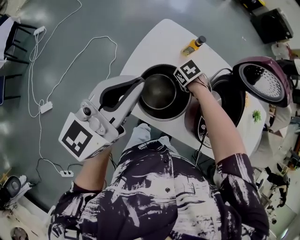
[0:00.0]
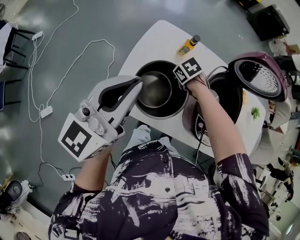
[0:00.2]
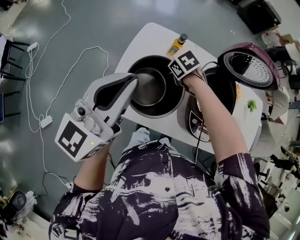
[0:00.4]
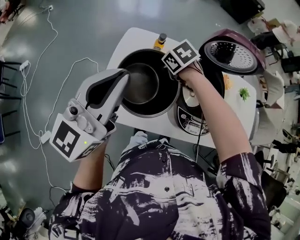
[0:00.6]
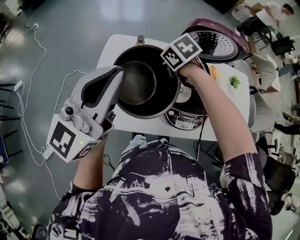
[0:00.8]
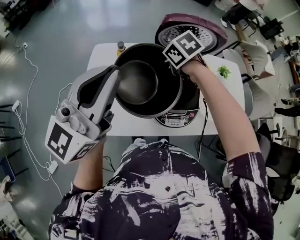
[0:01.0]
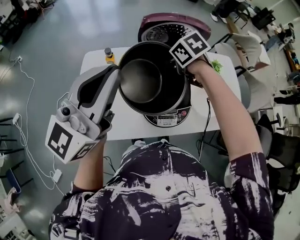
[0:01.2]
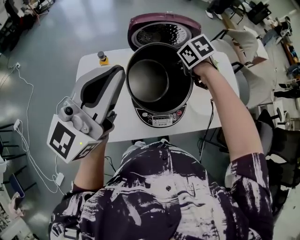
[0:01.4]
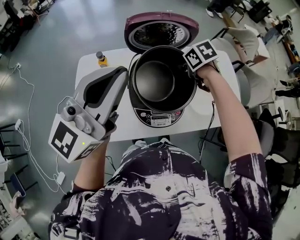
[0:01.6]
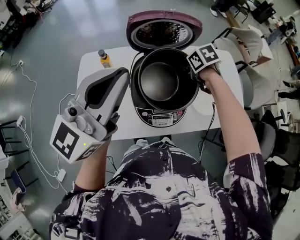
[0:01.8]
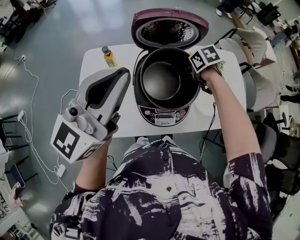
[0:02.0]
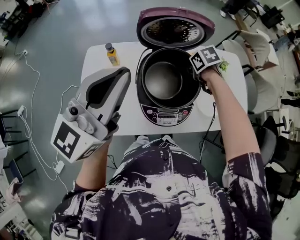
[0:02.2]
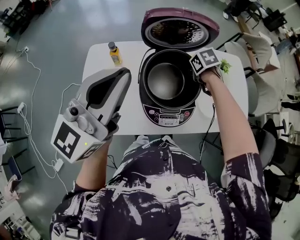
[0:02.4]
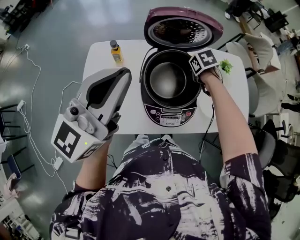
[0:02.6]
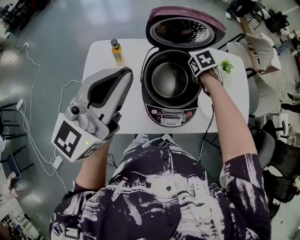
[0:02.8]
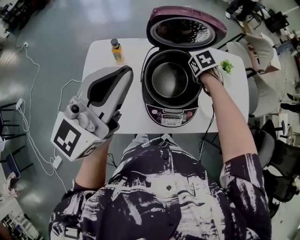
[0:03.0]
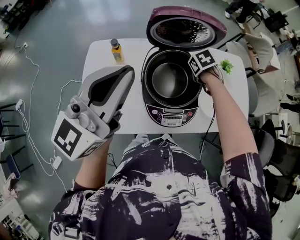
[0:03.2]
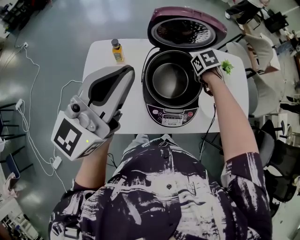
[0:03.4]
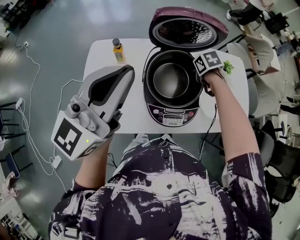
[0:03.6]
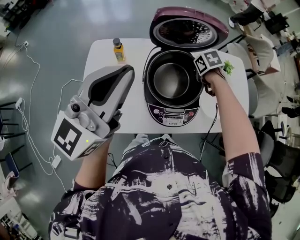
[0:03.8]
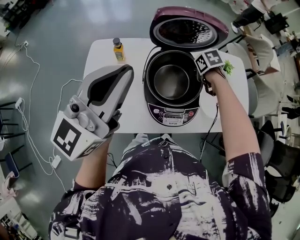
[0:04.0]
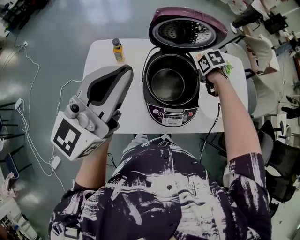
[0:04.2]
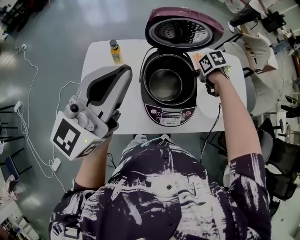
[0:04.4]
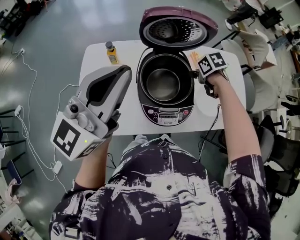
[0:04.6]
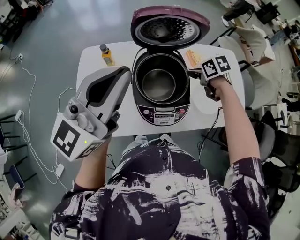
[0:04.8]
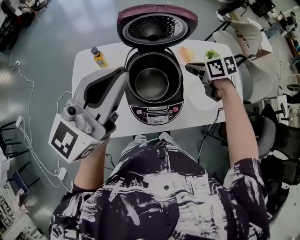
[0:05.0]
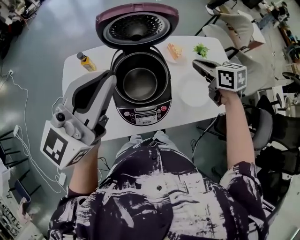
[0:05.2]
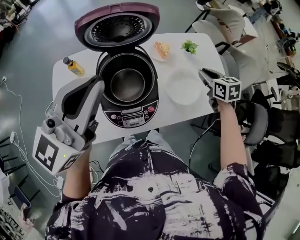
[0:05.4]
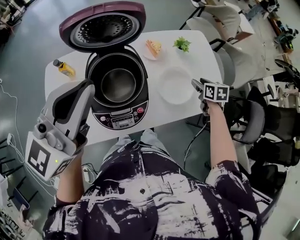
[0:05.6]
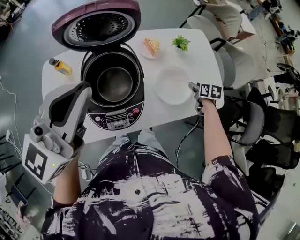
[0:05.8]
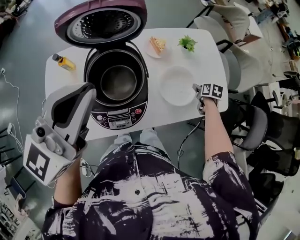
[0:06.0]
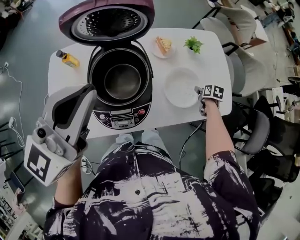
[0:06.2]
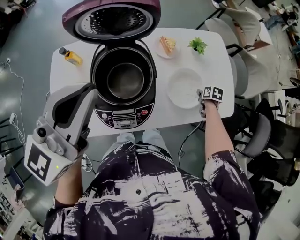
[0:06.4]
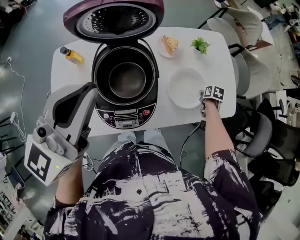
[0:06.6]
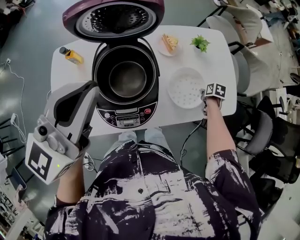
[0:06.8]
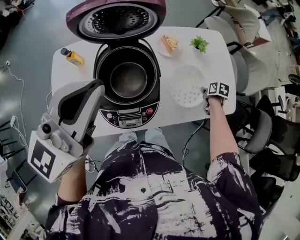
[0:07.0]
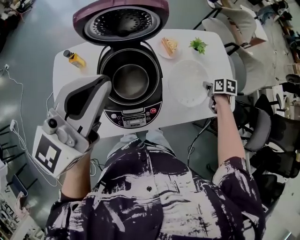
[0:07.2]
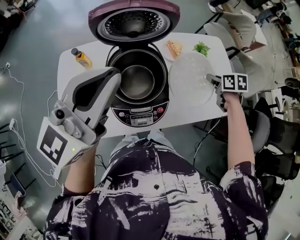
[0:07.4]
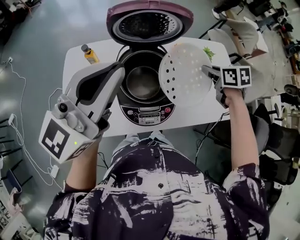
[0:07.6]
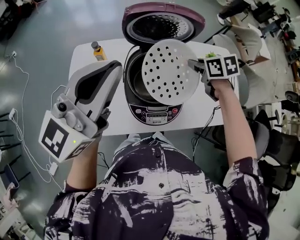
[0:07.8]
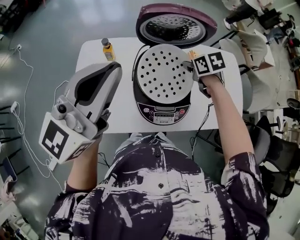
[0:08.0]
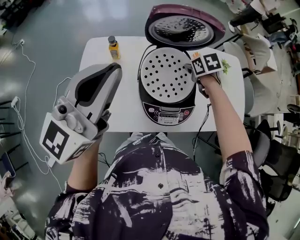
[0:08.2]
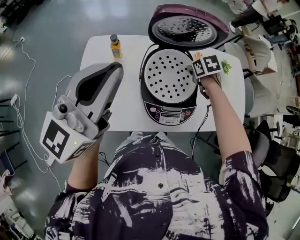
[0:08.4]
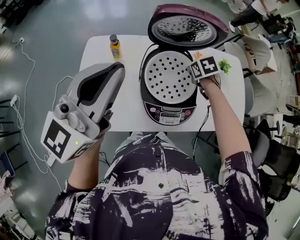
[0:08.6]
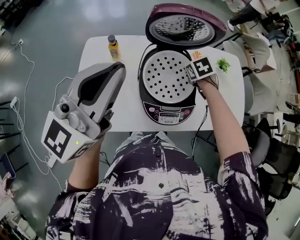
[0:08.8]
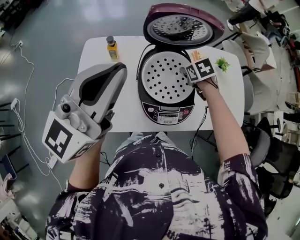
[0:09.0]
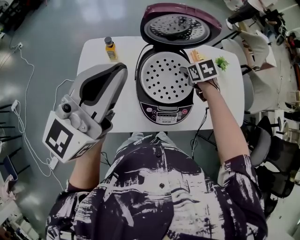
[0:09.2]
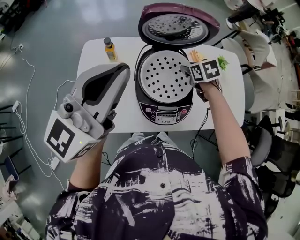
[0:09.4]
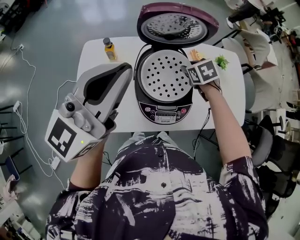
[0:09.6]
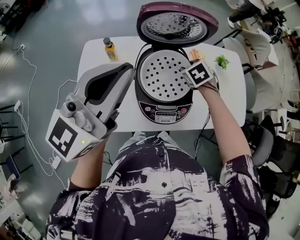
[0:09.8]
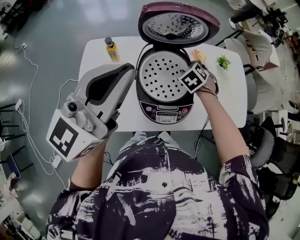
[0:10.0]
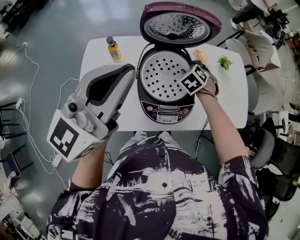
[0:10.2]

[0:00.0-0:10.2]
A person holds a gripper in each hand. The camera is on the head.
0:00.0 to 0:01.4: The right gripper shifts by about 40 cm, and rotates some 40 degrees; the left gripper changes place by about 30 cm, and changes its angle by approximately 30 degrees.
0:01.4 to 0:03.0: The right gripper goes about 10 cm downward.
0:03.0 to 0:04.4: The grippers move only a little.
0:04.4 to 0:05.8: The left gripper moves approximately 15 cm. The right gripper shifts by about 35 cm, and changes its angle by approximately 40 degrees.
0:05.8 to 0:07.2: The right gripper travels downward and back again, about 10 cm each way.
0:07.2 to 0:08.8: The right gripper goes some 30 cm to the left, and rolls counterclockwise, seen from behind, by some 40 degrees, while the left gripper goes some 15 cm to the left.
0:08.8 to 0:10.2: The right gripper changes its angle by some 30 degrees.

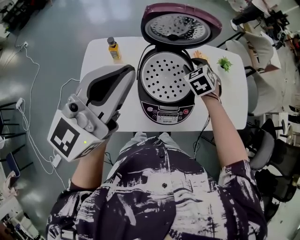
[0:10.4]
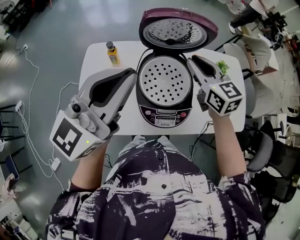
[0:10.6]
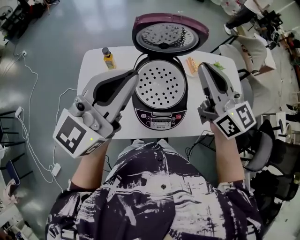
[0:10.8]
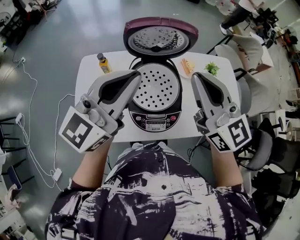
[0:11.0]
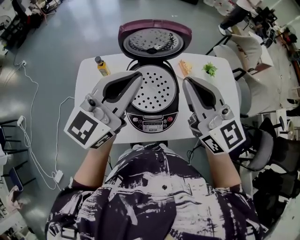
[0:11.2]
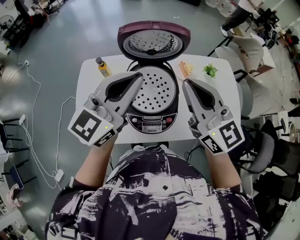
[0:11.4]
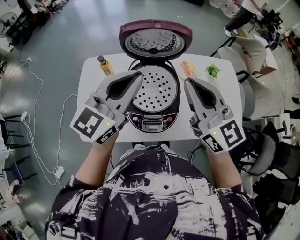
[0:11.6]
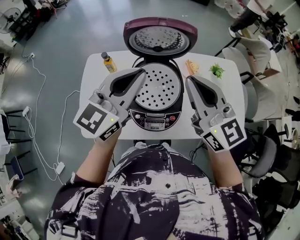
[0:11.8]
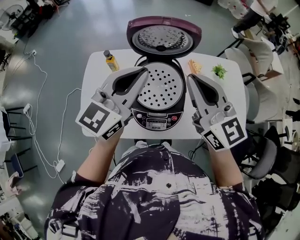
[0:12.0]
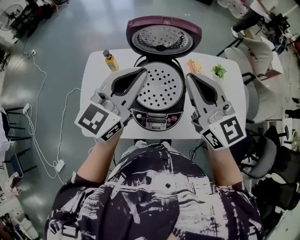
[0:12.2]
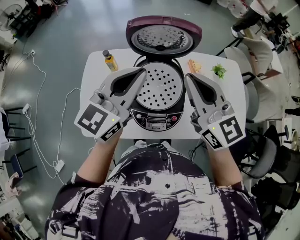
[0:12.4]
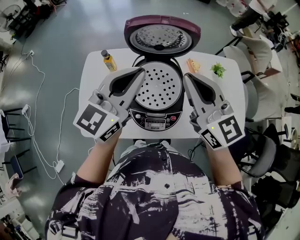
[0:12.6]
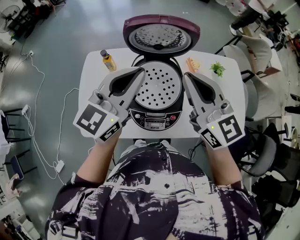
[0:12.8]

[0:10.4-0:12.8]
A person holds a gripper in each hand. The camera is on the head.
0:10.4 to 0:11.6: The left gripper is displaced to the right by approximately 10 cm. The right gripper goes about 30 cm upward and backward, and points its fingers some 50 degrees further upward.
0:11.6 to 0:12.8: The grippers stay close to where they were, moving slightly.

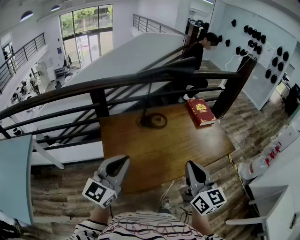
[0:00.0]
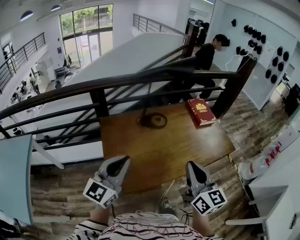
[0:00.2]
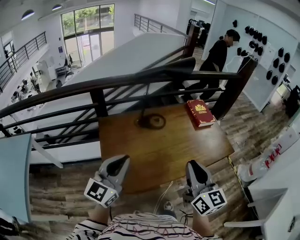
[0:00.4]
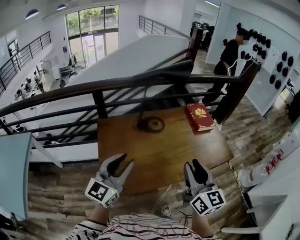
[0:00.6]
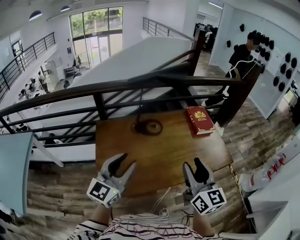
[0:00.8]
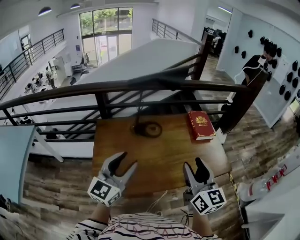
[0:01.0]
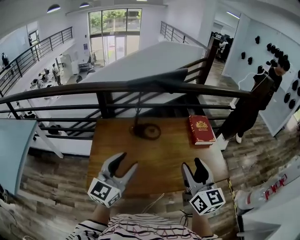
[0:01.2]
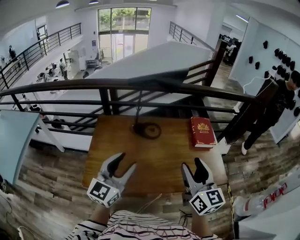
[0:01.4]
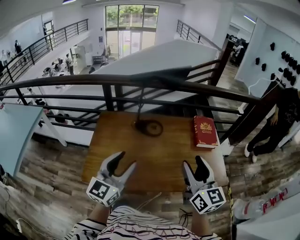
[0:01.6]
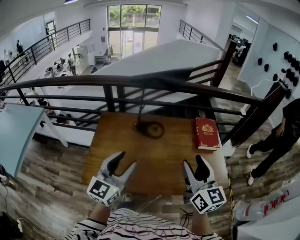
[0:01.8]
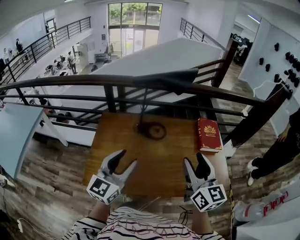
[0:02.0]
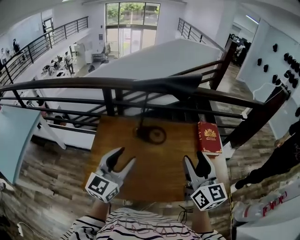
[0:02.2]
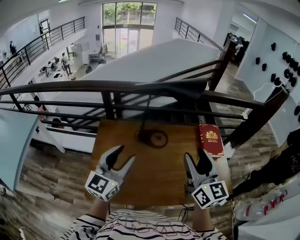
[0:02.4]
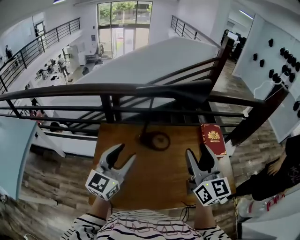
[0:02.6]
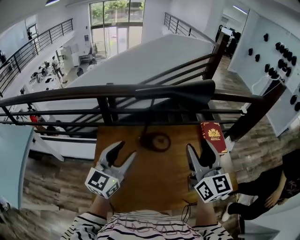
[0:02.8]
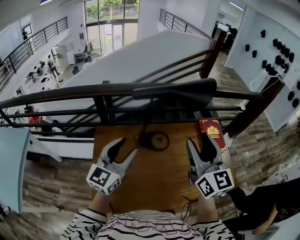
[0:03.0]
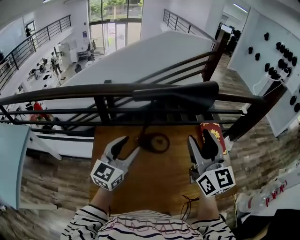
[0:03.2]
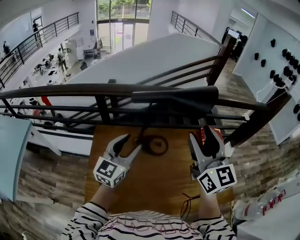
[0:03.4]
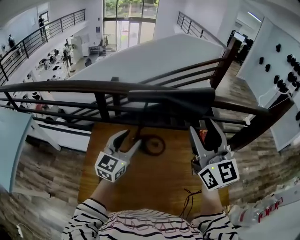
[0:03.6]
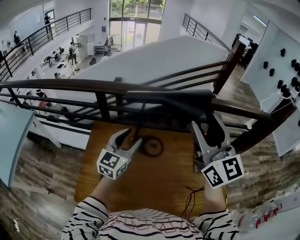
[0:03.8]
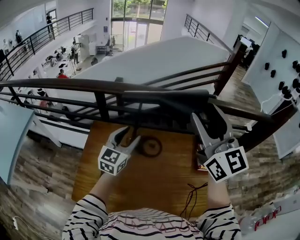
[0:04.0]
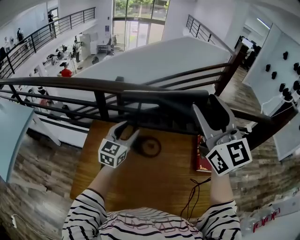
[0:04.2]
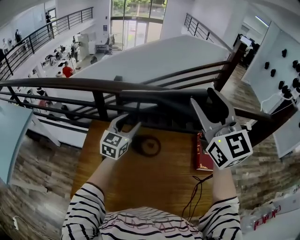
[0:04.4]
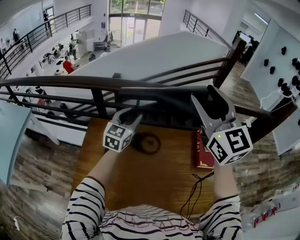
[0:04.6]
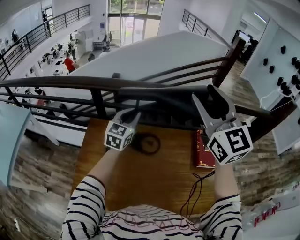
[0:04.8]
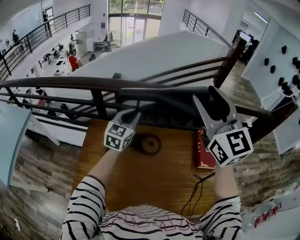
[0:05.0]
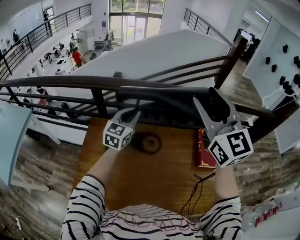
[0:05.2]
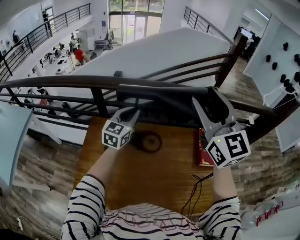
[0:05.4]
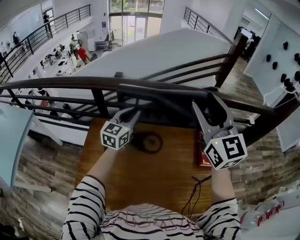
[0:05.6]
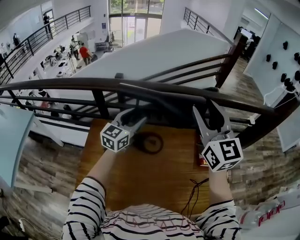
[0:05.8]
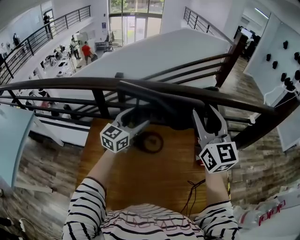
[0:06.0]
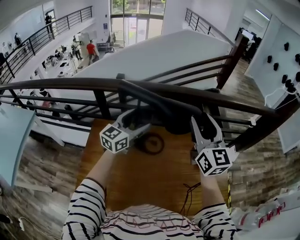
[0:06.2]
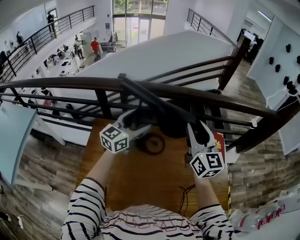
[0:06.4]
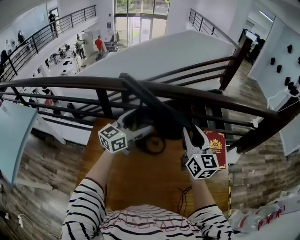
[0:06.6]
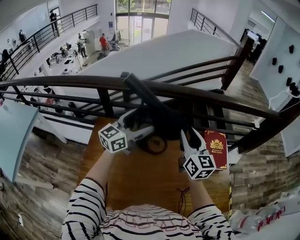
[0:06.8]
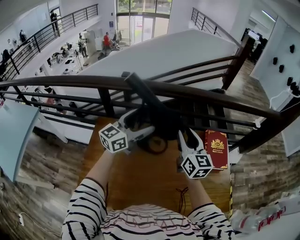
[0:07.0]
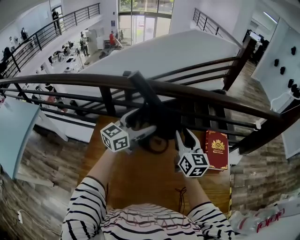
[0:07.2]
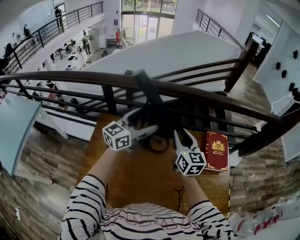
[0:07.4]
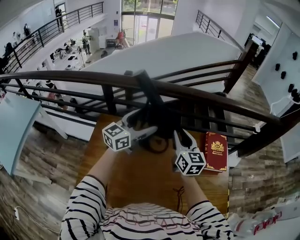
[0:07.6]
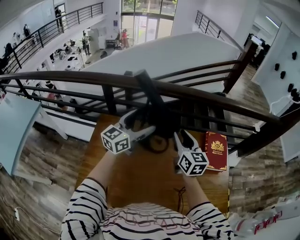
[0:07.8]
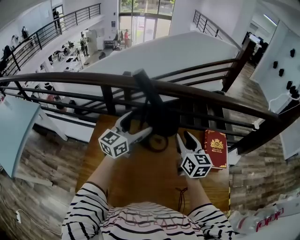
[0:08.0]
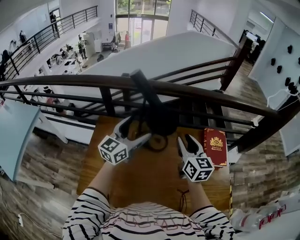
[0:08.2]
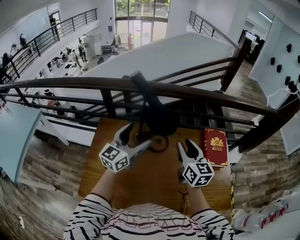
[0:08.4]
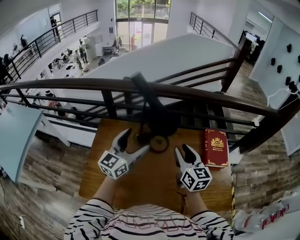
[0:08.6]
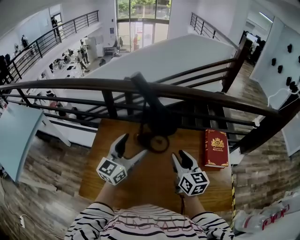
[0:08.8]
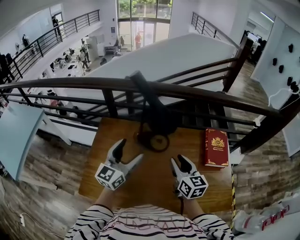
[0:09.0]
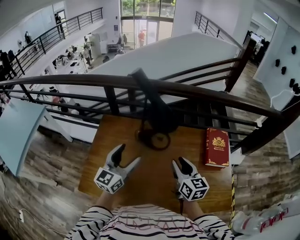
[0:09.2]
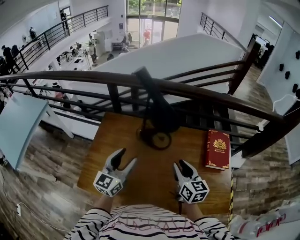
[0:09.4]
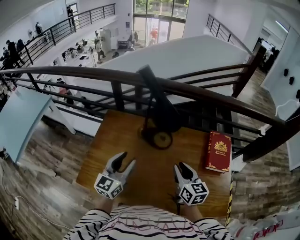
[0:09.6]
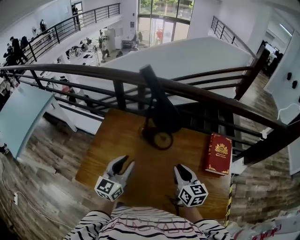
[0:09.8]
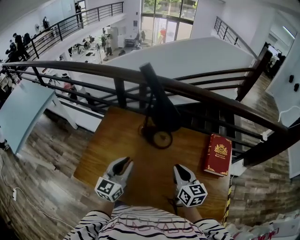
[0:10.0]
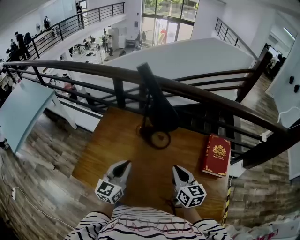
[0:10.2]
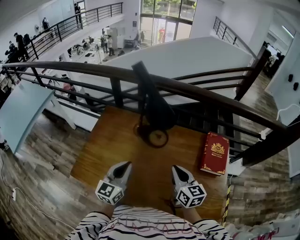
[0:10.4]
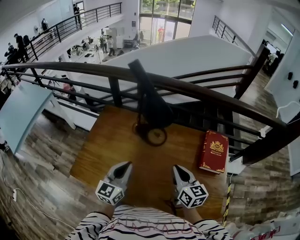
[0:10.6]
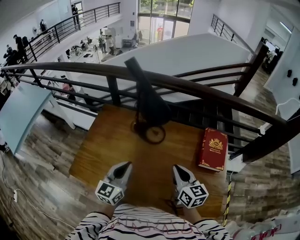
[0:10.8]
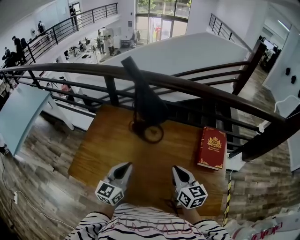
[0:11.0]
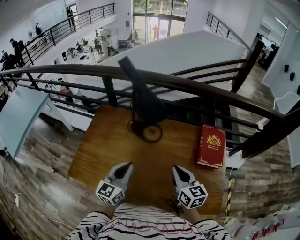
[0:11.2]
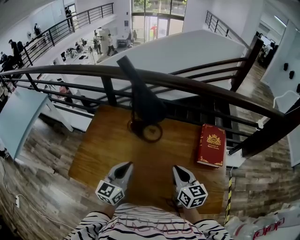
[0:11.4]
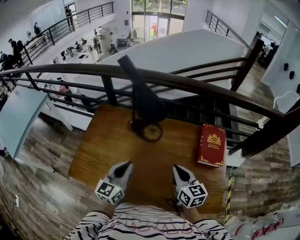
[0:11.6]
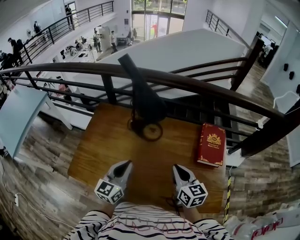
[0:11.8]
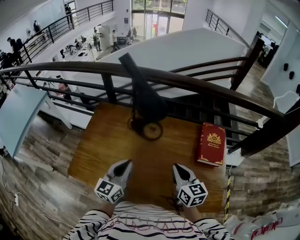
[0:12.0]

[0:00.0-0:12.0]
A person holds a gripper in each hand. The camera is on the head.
0:00.0 to 0:01.6: The right gripper goes roughly 30 cm to the right and forward, and opens its fingers. The left gripper travels to the right by some 25 cm, rotates about 20 degrees, and opens.
0:01.6 to 0:03.0: The grippers both shift forward and to the left by roughly 25 cm.
0:03.0 to 0:04.4: The left gripper moves forward and to the right, some 20 cm; the right gripper is displaced forward, upward and to the right by some 20 cm, and rotates some 20 degrees.
0:04.4 to 0:06.0: The left gripper closes, then reopens. The right gripper goes roughly 10 cm downward.
0:06.0 to 0:07.6: The right gripper shifts about 20 cm downward, changes its angle by about 20 degrees, and closes its fingers.
0:07.6 to 0:09.0: The grippers both shift backward by roughly 15 cm.
0:09.0 to 0:10.4: The left gripper shifts approximately 10 cm backward and downward, and closes up. Meanwhile the right gripper ends up about 5 cm from where it was, and closes up.
0:10.4 to 0:12.0: The grippers make only small movements.
